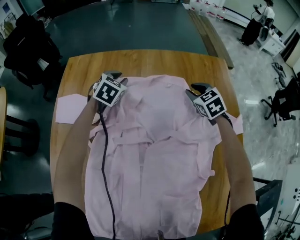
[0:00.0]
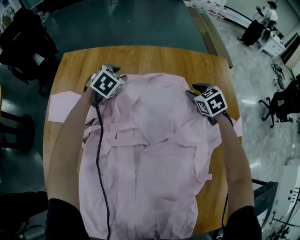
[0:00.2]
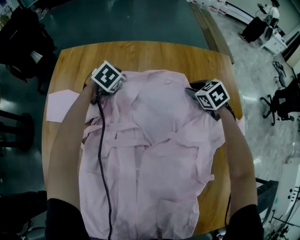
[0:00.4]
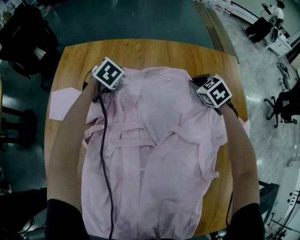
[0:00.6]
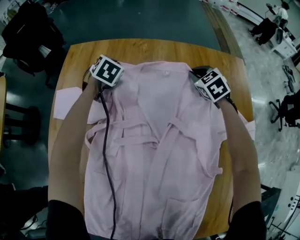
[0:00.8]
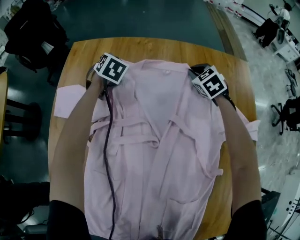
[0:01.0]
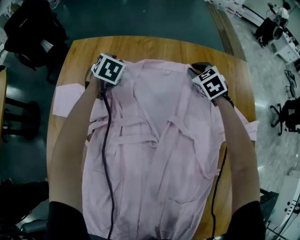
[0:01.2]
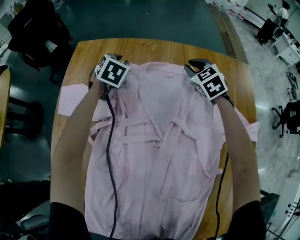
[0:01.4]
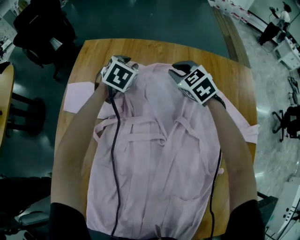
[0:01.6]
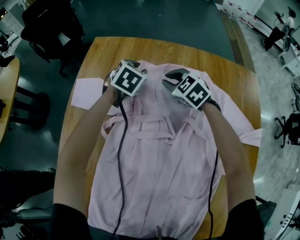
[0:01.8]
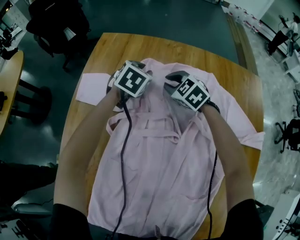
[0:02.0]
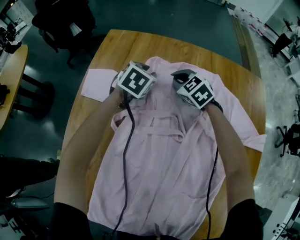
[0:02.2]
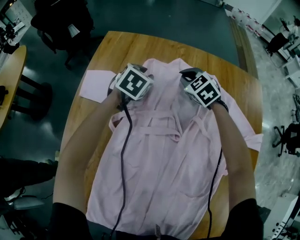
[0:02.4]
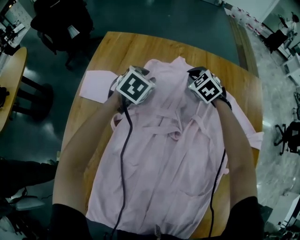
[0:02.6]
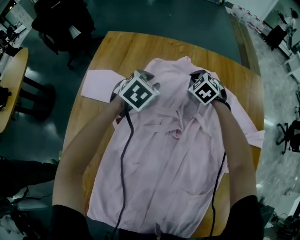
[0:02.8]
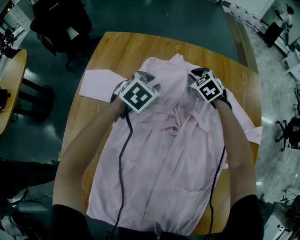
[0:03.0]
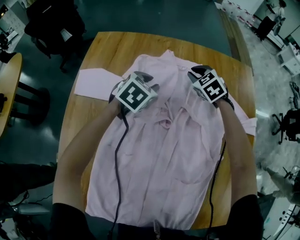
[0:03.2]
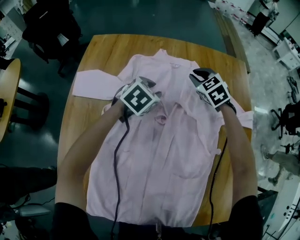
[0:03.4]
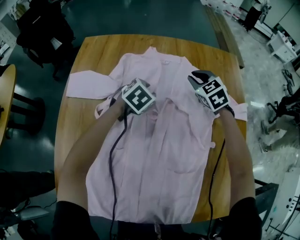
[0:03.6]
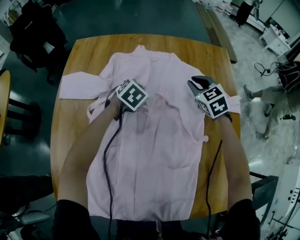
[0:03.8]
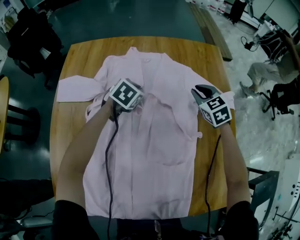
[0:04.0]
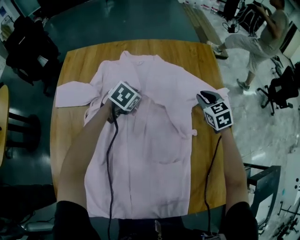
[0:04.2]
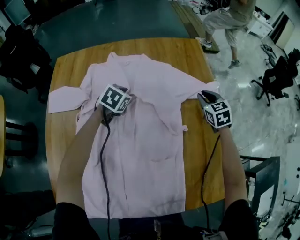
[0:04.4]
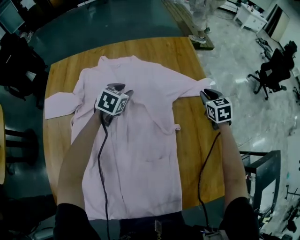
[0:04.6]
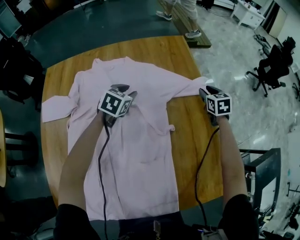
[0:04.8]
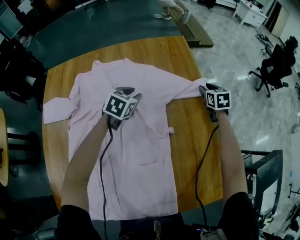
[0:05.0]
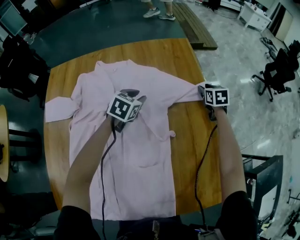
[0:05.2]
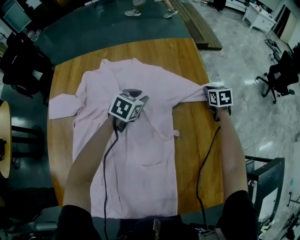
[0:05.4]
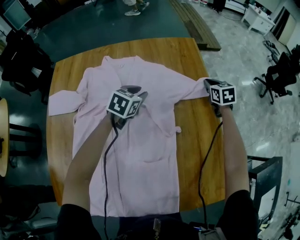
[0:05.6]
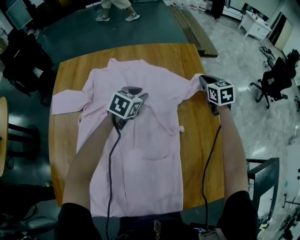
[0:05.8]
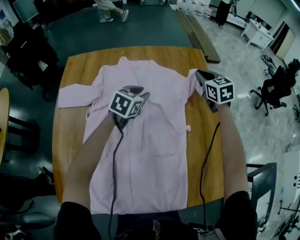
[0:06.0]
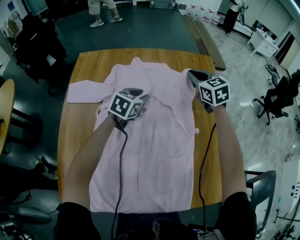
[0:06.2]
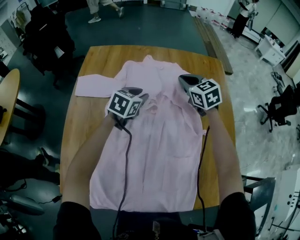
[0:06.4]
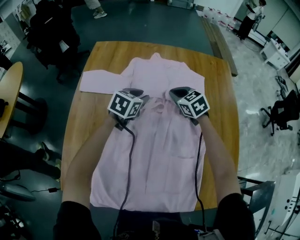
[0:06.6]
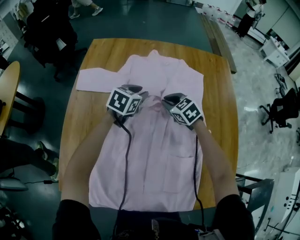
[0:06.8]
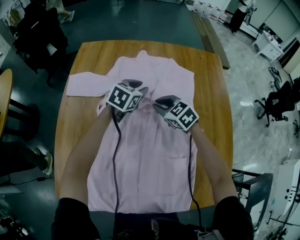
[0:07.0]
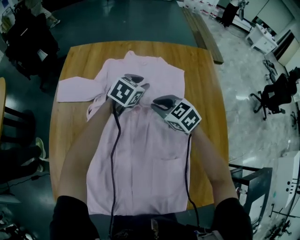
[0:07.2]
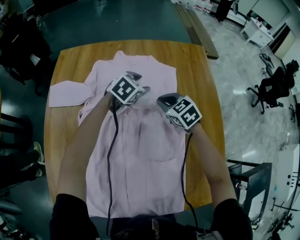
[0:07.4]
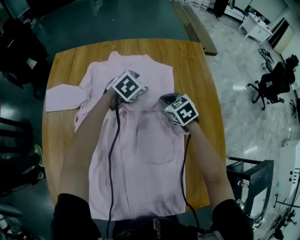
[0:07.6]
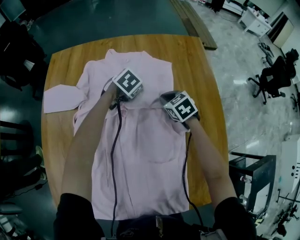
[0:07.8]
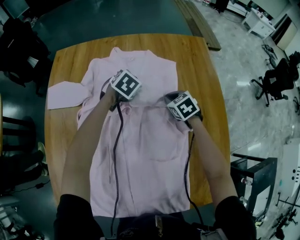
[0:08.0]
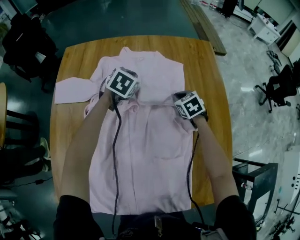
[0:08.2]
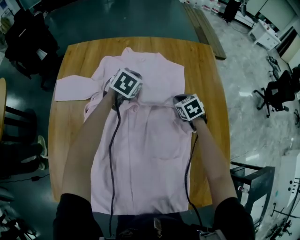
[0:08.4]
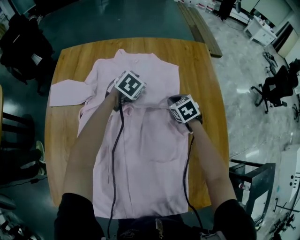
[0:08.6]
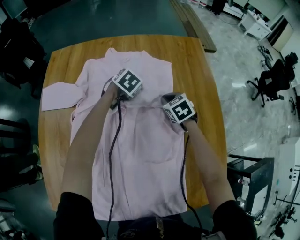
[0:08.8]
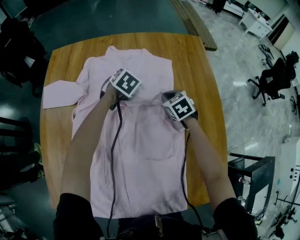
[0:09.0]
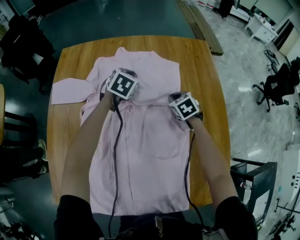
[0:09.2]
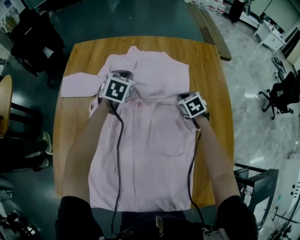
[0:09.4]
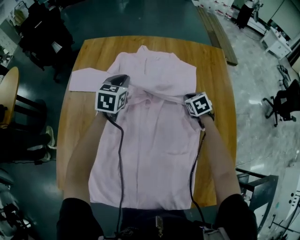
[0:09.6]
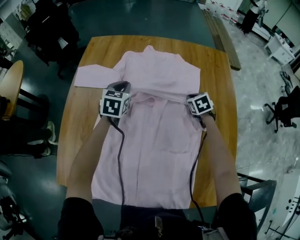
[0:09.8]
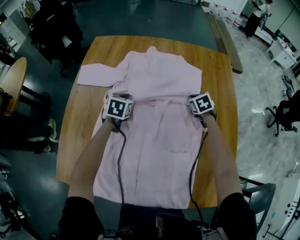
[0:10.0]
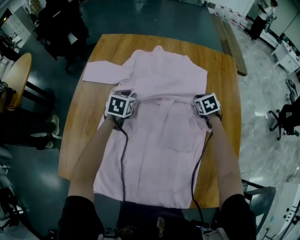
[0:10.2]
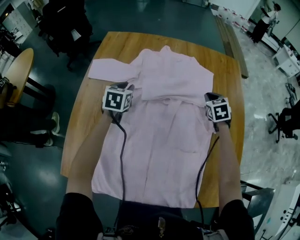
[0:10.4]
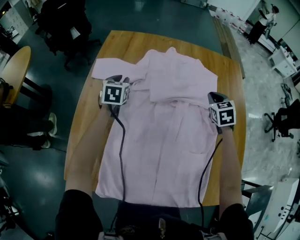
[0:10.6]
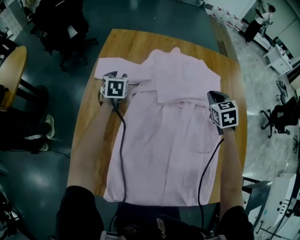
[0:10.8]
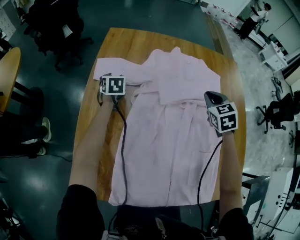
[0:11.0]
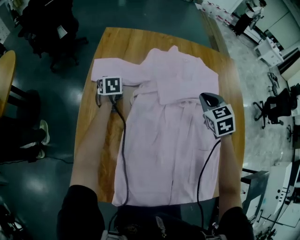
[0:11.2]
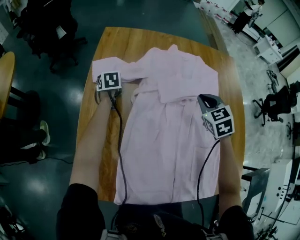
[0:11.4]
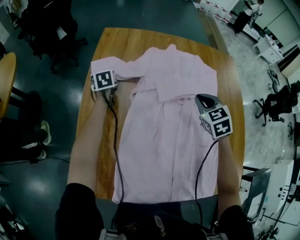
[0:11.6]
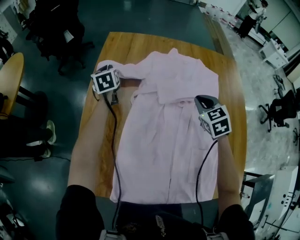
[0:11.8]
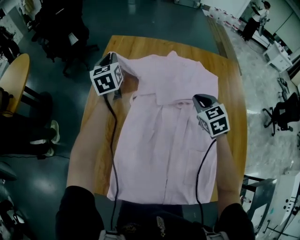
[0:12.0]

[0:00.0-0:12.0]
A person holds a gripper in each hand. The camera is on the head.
0:00.0 to 0:01.6: The left gripper travels to the left and forward by some 10 cm, while the right gripper moves to the left and forward, approximately 20 cm, and turns by about 20 degrees.
0:01.6 to 0:03.0: The left gripper heads backward, covering about 15 cm; the right gripper moves approximately 10 cm to the left and comes back.
0:03.0 to 0:04.4: The left gripper moves to the right and backward, roughly 20 cm, and closes, then reopens. The right gripper is displaced to the right and backward by roughly 40 cm, and changes its angle by some 40 degrees.
0:04.4 to 0:06.0: The right gripper goes about 15 cm upward and to the left, and opens, then closes once more, while the left gripper moves upward, approximately 10 cm, and moves approximately 10 cm to the right and comes back.
0:06.0 to 0:07.6: The right gripper shifts approximately 20 cm downward and to the left, and rotates about 20 degrees, while the left gripper heads forward and downward, covering approximately 10 cm, travels to the left and back again, roughly 15 cm each way, swivels some 20 degrees, and opens.
0:07.6 to 0:09.0: The left gripper goes up and down, approximately 10 cm each way, reversing 2 times, and closes its fingers.
0:09.0 to 0:10.4: The left gripper is displaced to the left and backward by roughly 30 cm, and rotates some 40 degrees. The right gripper shifts about 10 cm upward.
0:10.4 to 0:12.0: The left gripper shifts roughly 25 cm to the left, upward and forward, swivels about 30 degrees, and opens and closes again; the right gripper moves to the left and upward, roughly 20 cm.

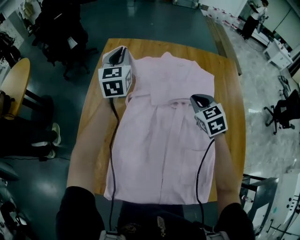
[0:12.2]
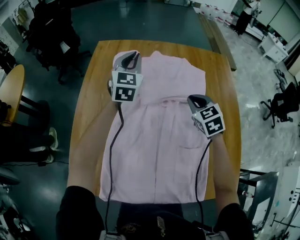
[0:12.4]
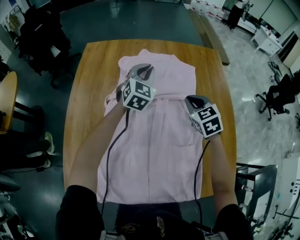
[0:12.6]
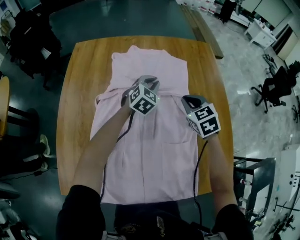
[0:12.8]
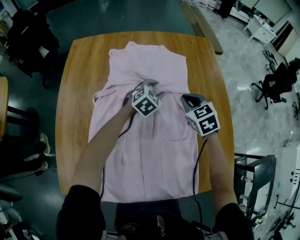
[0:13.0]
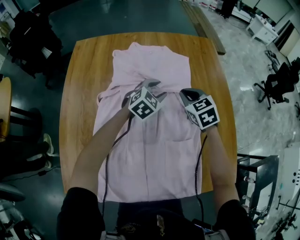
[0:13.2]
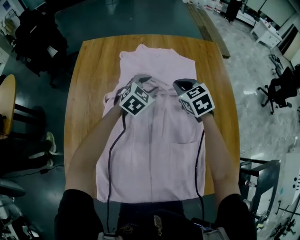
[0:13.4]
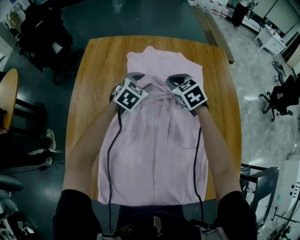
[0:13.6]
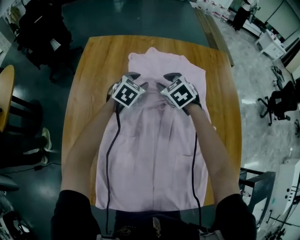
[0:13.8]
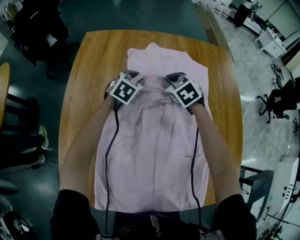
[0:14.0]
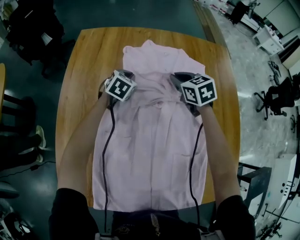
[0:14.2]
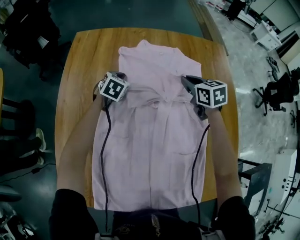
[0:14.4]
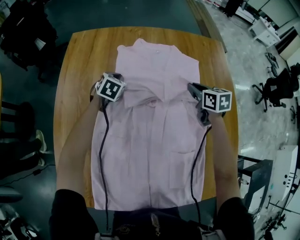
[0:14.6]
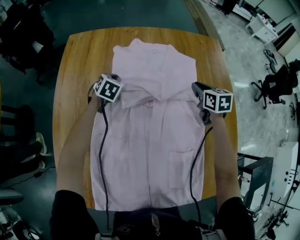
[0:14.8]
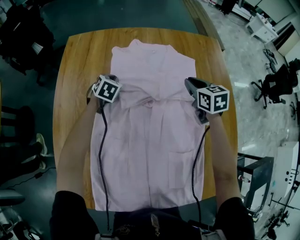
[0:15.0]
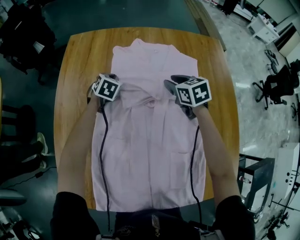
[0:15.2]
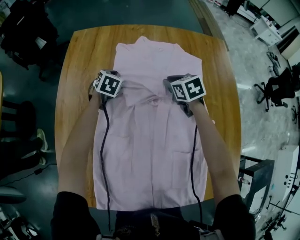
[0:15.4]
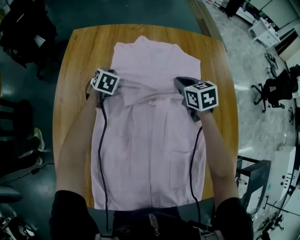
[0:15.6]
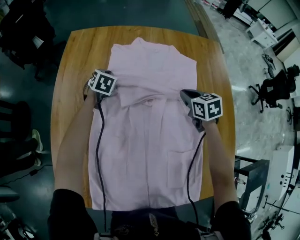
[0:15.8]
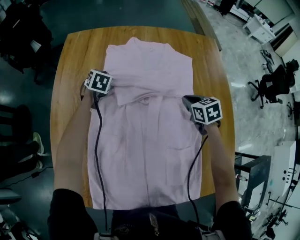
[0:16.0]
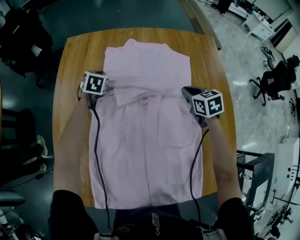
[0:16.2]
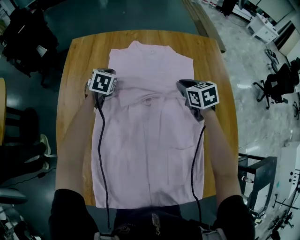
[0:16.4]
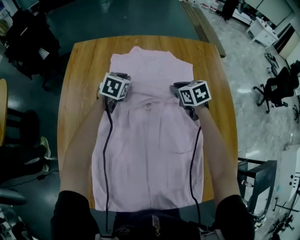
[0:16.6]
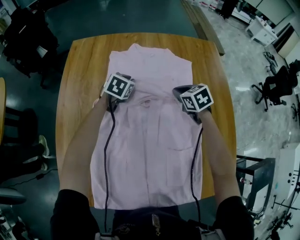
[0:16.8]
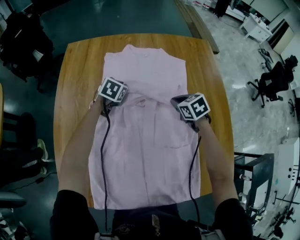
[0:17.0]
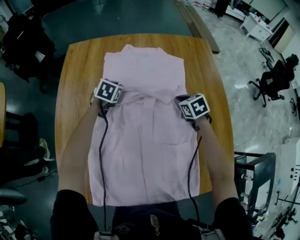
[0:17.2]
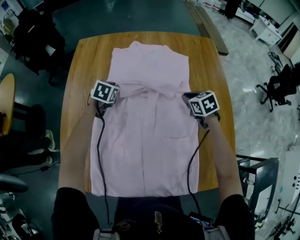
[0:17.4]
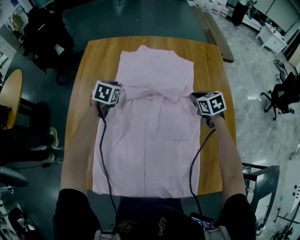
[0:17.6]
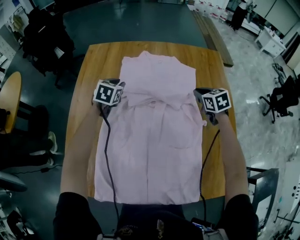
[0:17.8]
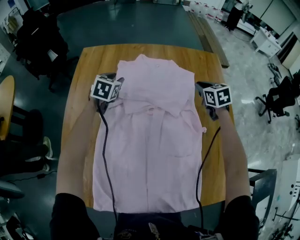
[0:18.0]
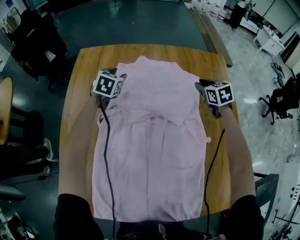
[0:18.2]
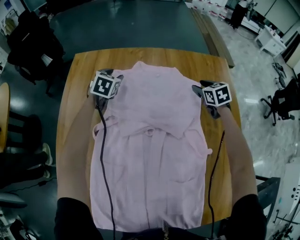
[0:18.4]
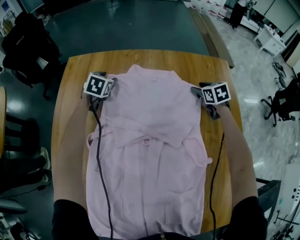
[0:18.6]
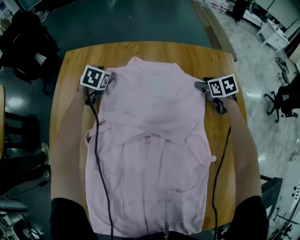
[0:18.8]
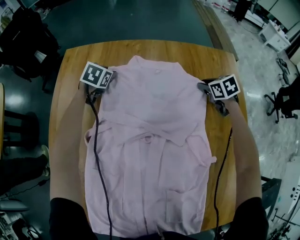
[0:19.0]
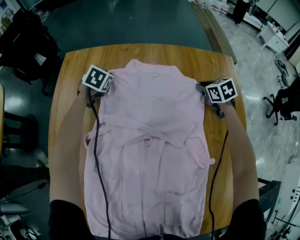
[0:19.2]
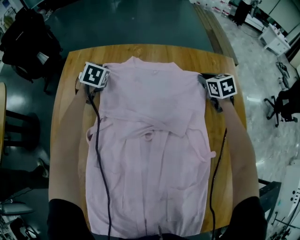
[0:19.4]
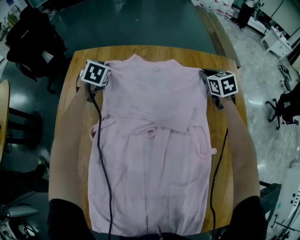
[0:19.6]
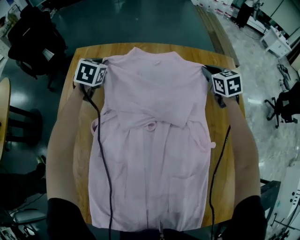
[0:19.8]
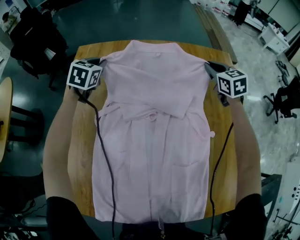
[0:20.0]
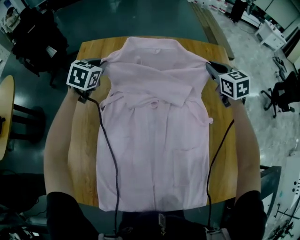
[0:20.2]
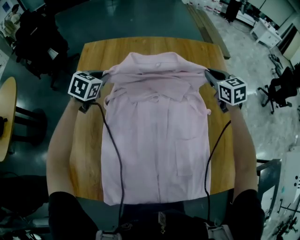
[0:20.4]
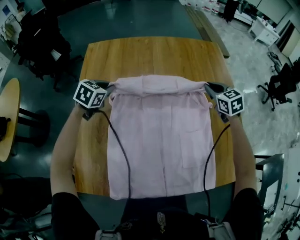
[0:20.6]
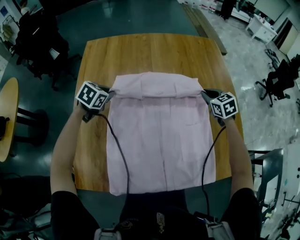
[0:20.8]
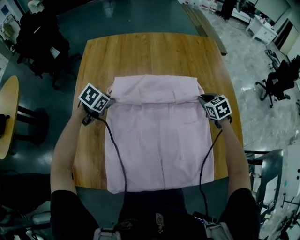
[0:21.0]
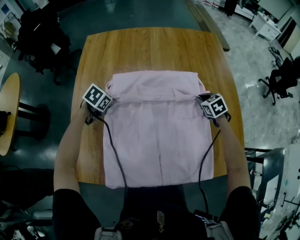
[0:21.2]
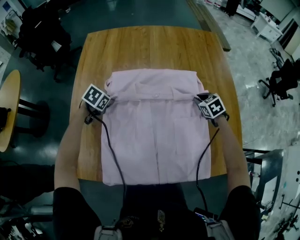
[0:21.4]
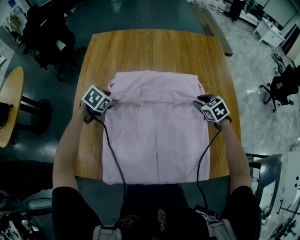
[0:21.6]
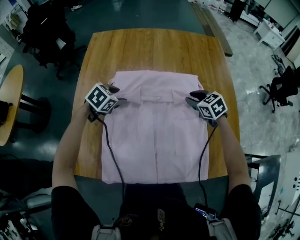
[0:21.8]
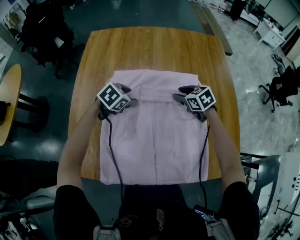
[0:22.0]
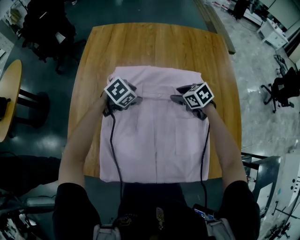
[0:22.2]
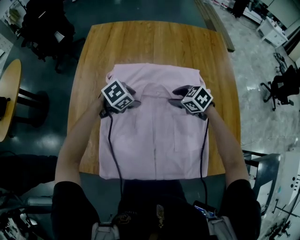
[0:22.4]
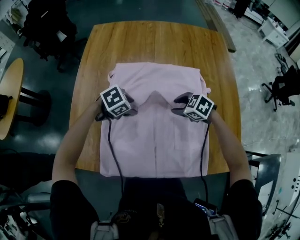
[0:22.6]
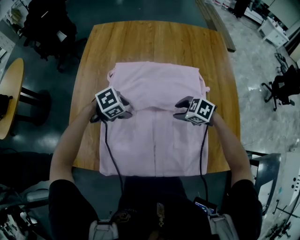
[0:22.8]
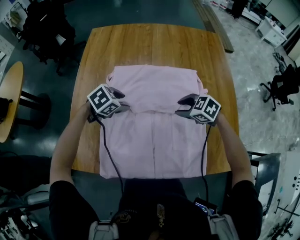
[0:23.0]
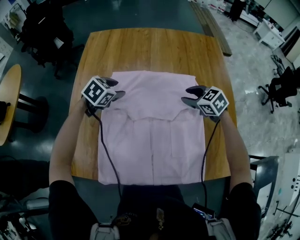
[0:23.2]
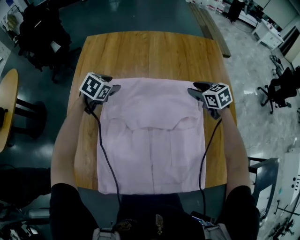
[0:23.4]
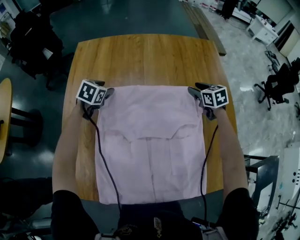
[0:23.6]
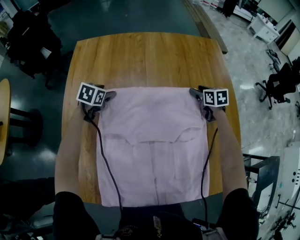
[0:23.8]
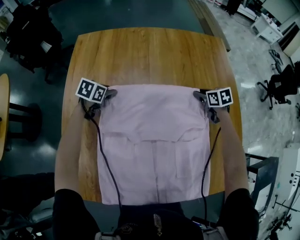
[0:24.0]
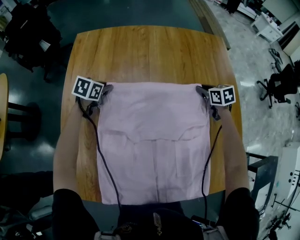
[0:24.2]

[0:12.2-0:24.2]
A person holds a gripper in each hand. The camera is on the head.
0:12.2 to 0:13.8: The left gripper travels downward and to the right by roughly 25 cm, tips its fingers downward by about 30 degrees, and opens its fingers. The right gripper moves forward and downward, some 10 cm, travels to the right and back again, approximately 10 cm each way, and opens.
0:13.8 to 0:15.2: The right gripper shifts about 10 cm to the right, turns by roughly 30 degrees, and closes, then reopens. The left gripper travels downward, to the left and forward by some 10 cm, and closes up.
0:15.2 to 0:16.6: The right gripper reaches roughly 10 cm backward, then returns. Meanwhile the left gripper shifts some 10 cm to the right and upward.
0:16.6 to 0:18.2: The left gripper is displaced forward and to the left by approximately 10 cm, and opens; the right gripper heads to the right and forward, covering some 15 cm.
0:18.2 to 0:19.8: The two grippers go about 10 cm forward. The left gripper closes up. Meanwhile the right gripper opens, then closes once more.
0:19.8 to 0:21.2: Both grippers move backward, about 35 cm. The left gripper changes its angle by roughly 40 degrees.
0:21.2 to 0:22.6: The right gripper ends up roughly 15 cm from where it was, swivels about 40 degrees, and opens. Meanwhile the left gripper moves some 15 cm, changes its angle by some 20 degrees, and opens its fingers.
0:22.6 to 0:24.2: The left gripper reaches roughly 5 cm upward, then returns, changes its angle by about 40 degrees, and closes up; the right gripper reaches approximately 5 cm upward, then returns, turns by about 50 degrees, and closes its fingers.
